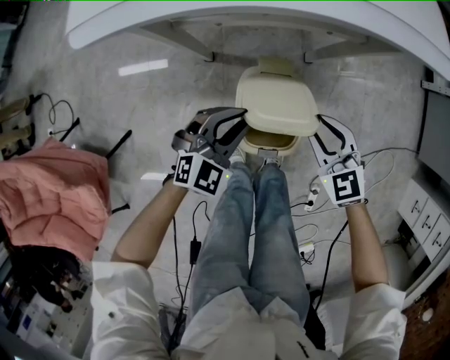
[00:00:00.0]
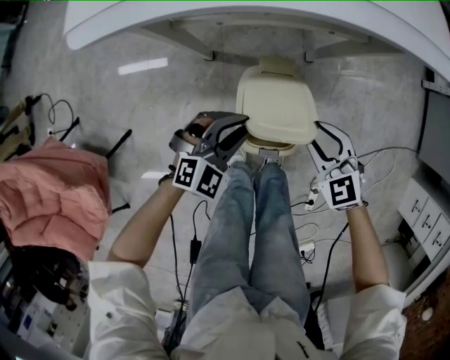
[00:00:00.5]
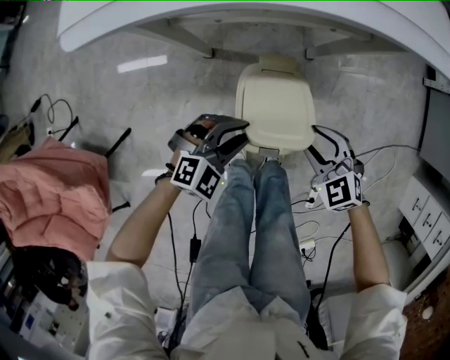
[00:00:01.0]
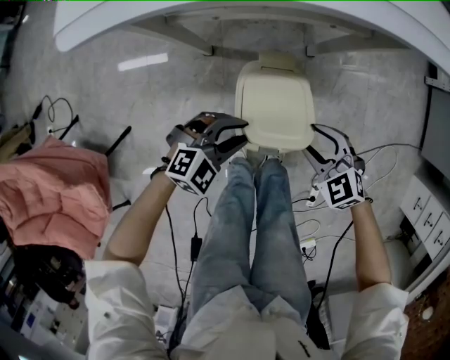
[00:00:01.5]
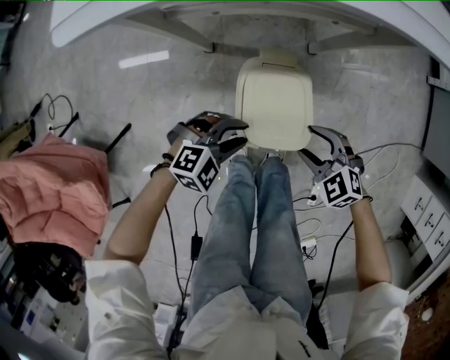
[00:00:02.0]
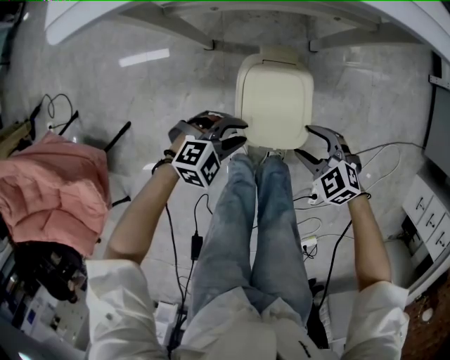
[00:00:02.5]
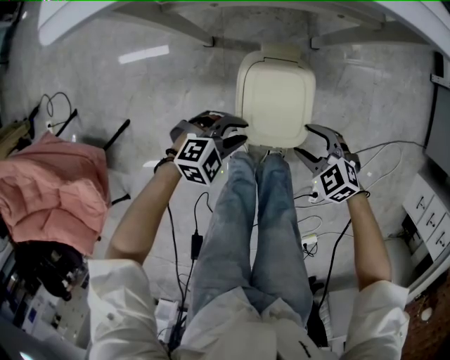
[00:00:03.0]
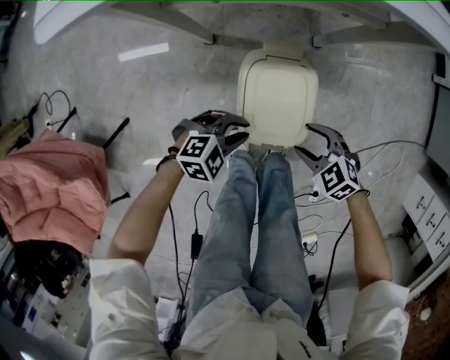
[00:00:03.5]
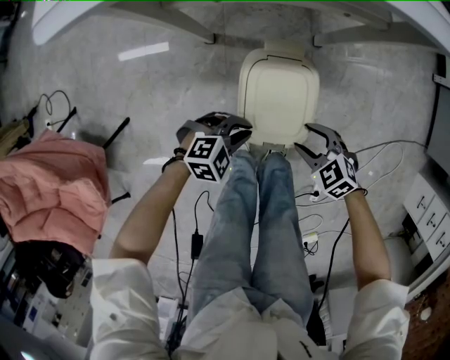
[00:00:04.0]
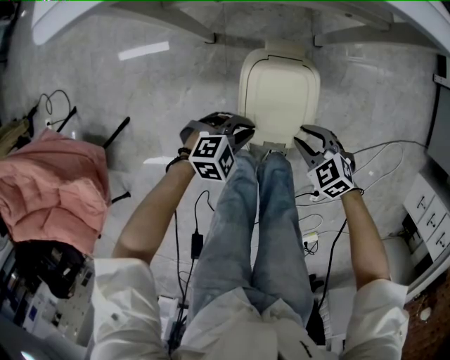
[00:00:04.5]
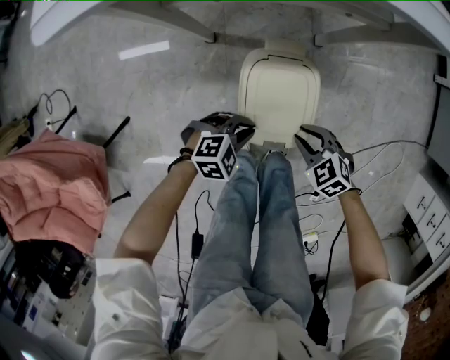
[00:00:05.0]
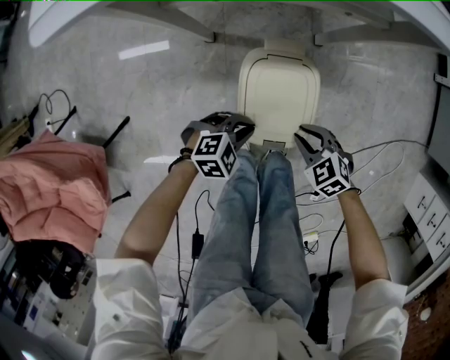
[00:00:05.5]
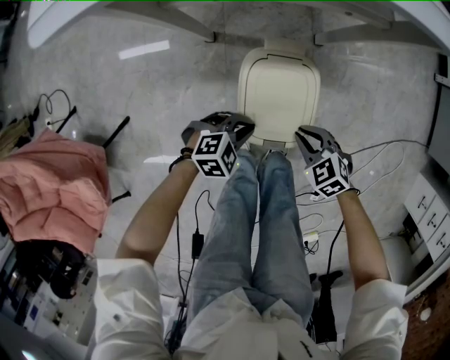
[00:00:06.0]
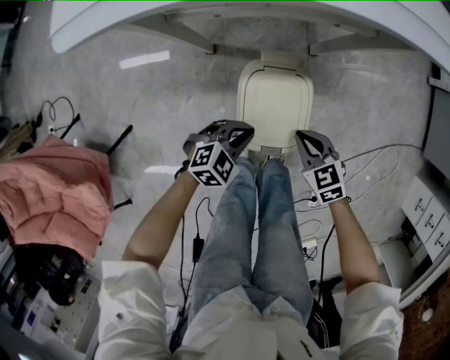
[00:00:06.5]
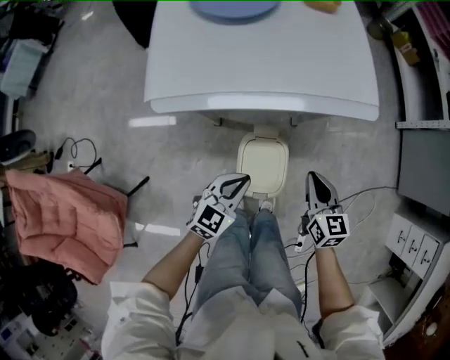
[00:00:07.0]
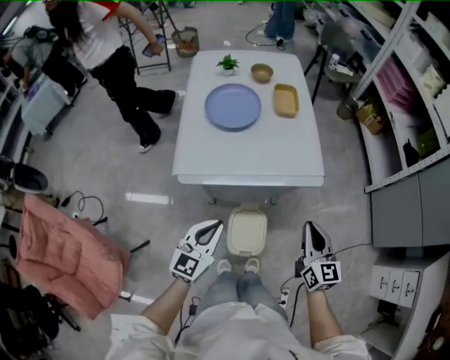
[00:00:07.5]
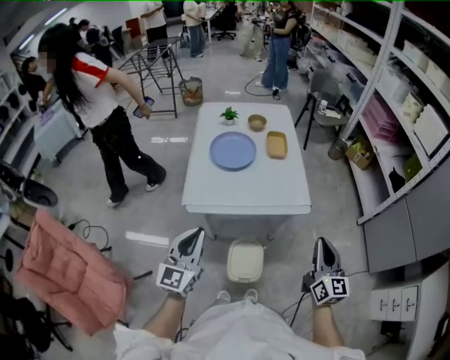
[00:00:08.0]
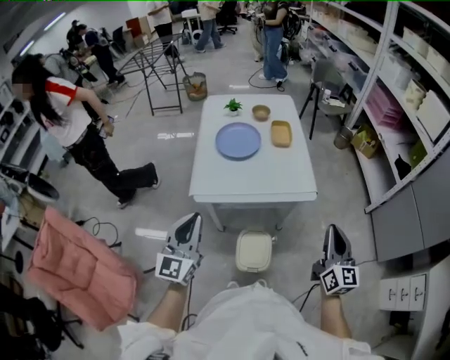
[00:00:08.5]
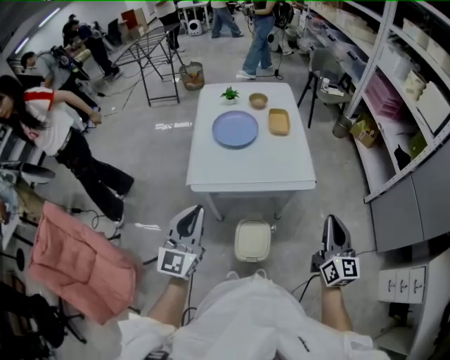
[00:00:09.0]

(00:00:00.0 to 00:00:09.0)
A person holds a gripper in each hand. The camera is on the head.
00:00:00.0 - 00:00:02.0: The right gripper heads downward, covering roughly 10 cm, and changes its angle by some 20 degrees. The left gripper shifts by some 10 cm, and changes its angle by roughly 30 degrees.
00:00:02.0 - 00:00:04.5: The grippers both shift downward by approximately 5 cm.
00:00:04.5 - 00:00:07.0: The grippers both shift upward by some 30 cm. The right gripper rotates some 60 degrees, while the left gripper changes its angle by roughly 50 degrees.
00:00:07.0 - 00:00:09.0: Both grippers move upward, approximately 40 cm. The left gripper tilts its fingers roughly 30 degrees upward, while the right gripper changes its angle by about 30 degrees.

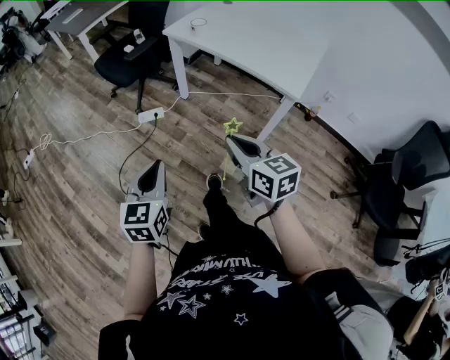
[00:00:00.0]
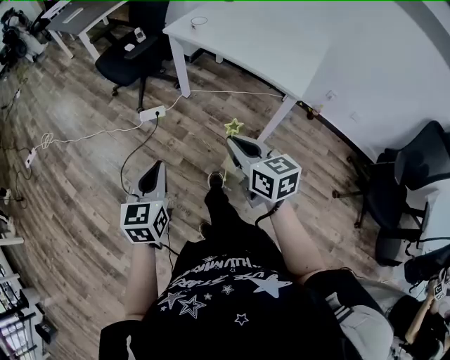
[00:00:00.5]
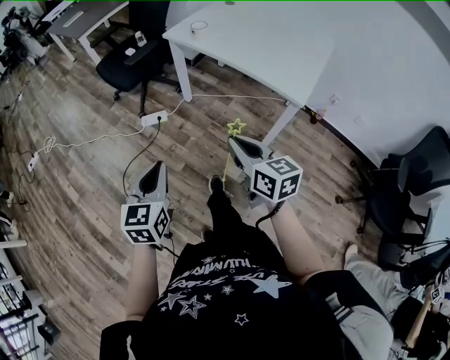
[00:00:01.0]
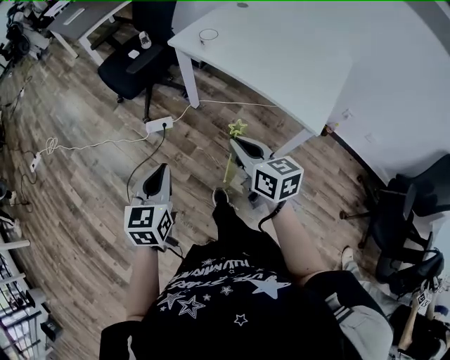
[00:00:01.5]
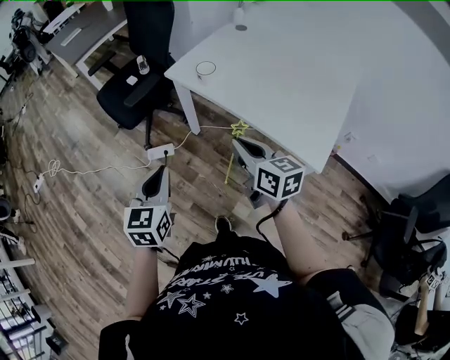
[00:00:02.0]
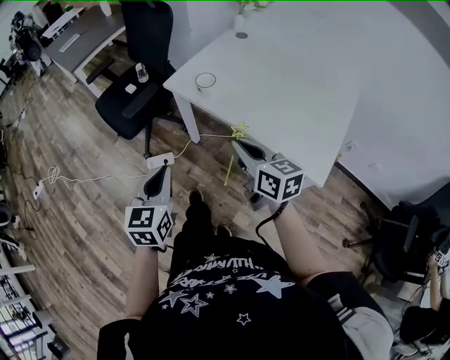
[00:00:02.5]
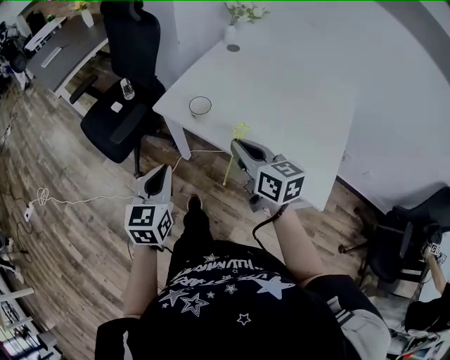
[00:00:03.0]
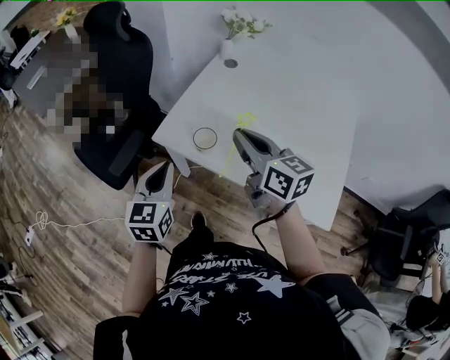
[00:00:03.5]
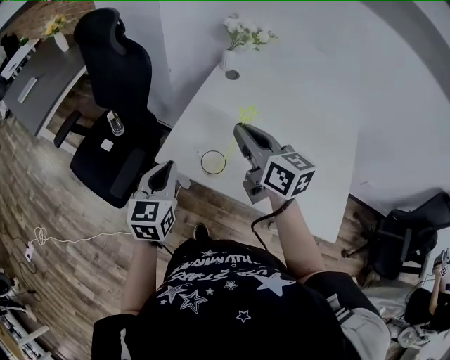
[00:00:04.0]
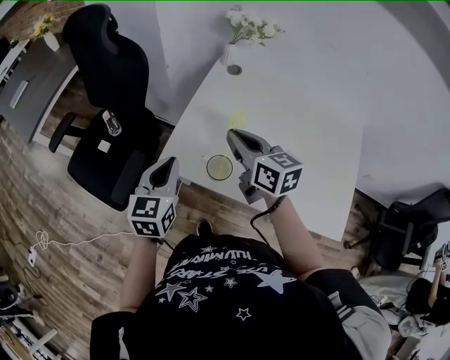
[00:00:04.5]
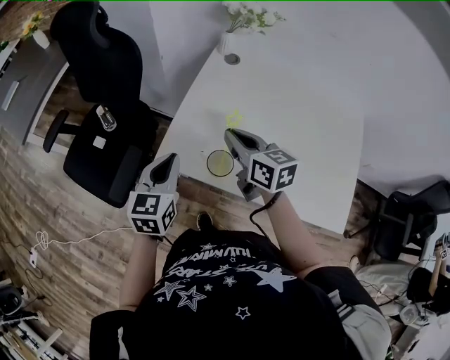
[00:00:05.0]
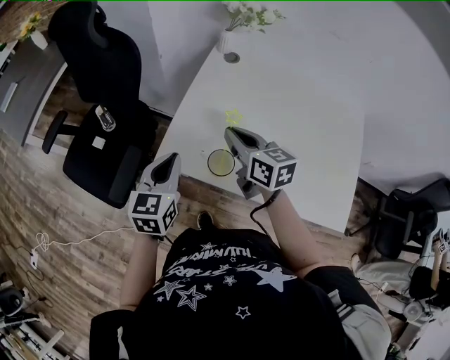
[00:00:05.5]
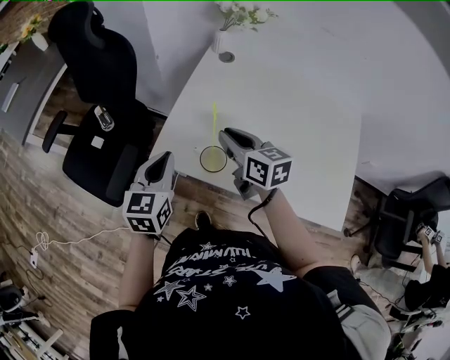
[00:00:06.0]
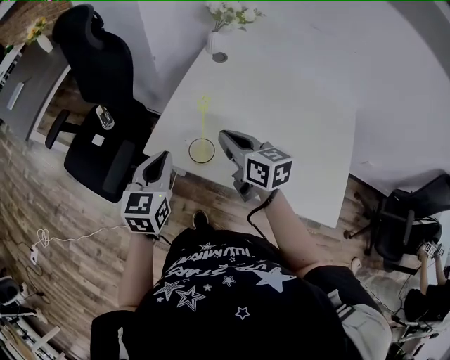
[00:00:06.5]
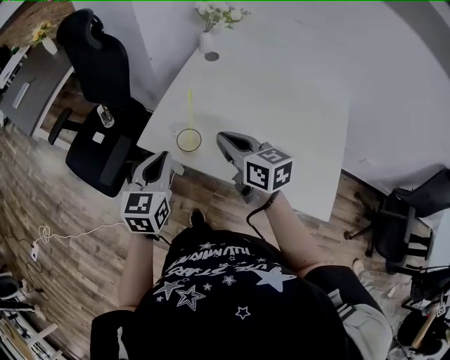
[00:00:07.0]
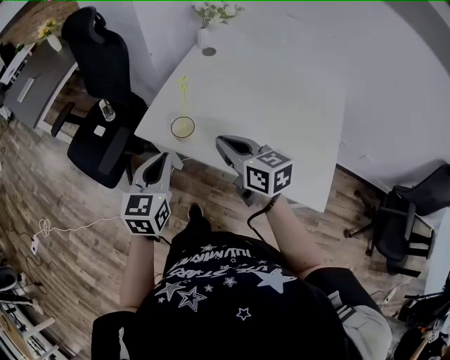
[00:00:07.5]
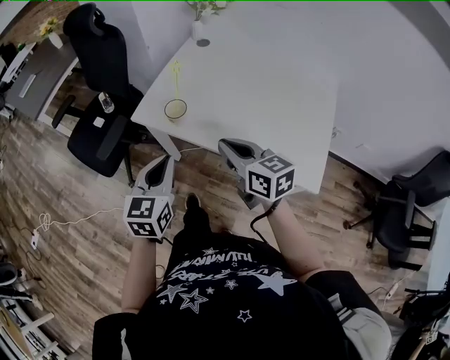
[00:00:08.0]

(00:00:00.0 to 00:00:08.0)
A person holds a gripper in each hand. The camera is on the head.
00:00:00.0 - 00:00:02.0: Both grippers travel together forward, about 30 cm.
00:00:02.0 - 00:00:04.0: Both grippers travel together forward, some 40 cm.
00:00:04.0 - 00:00:06.0: The left gripper changes place by about 5 cm. The right gripper is displaced downward by about 15 cm.
00:00:06.0 - 00:00:08.0: Both grippers travel together backward, about 25 cm.

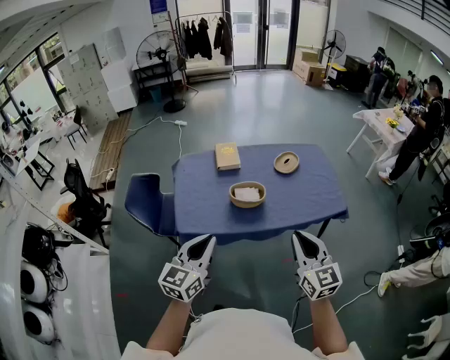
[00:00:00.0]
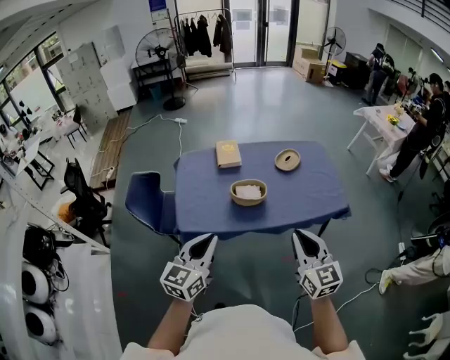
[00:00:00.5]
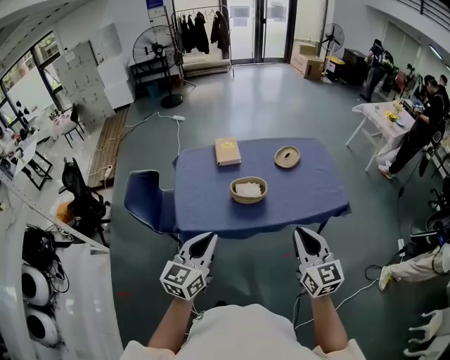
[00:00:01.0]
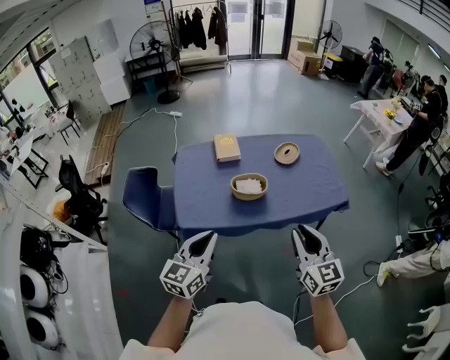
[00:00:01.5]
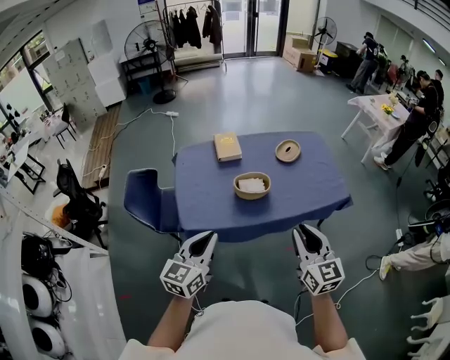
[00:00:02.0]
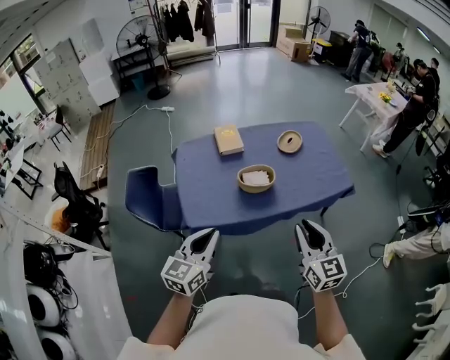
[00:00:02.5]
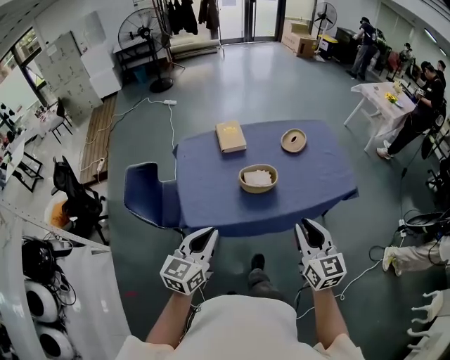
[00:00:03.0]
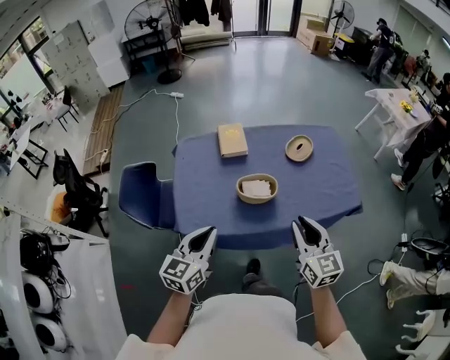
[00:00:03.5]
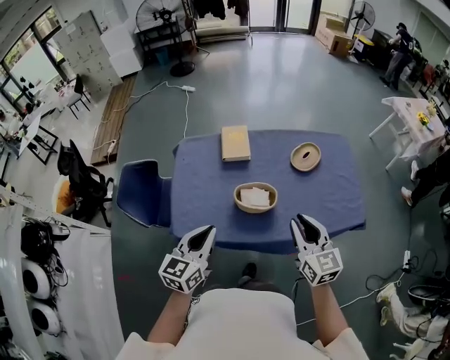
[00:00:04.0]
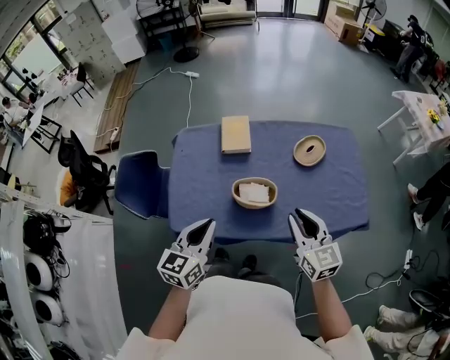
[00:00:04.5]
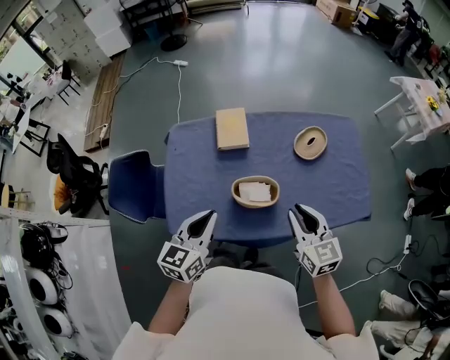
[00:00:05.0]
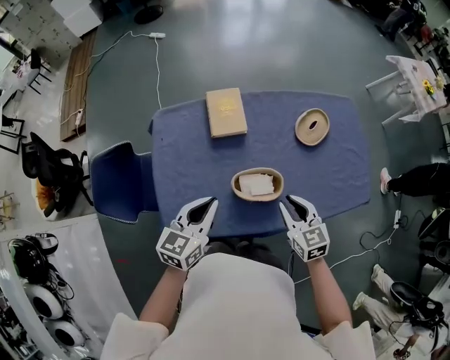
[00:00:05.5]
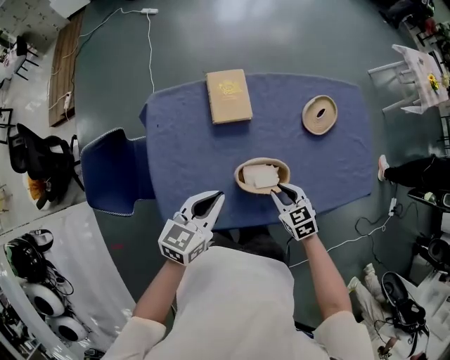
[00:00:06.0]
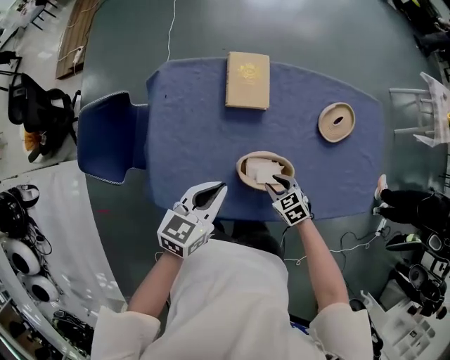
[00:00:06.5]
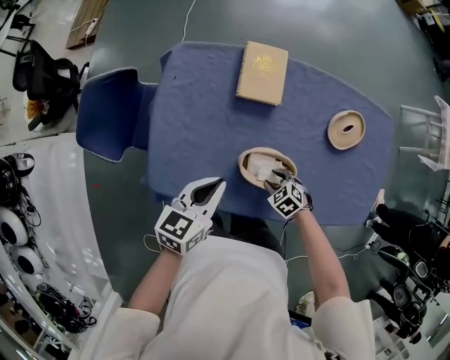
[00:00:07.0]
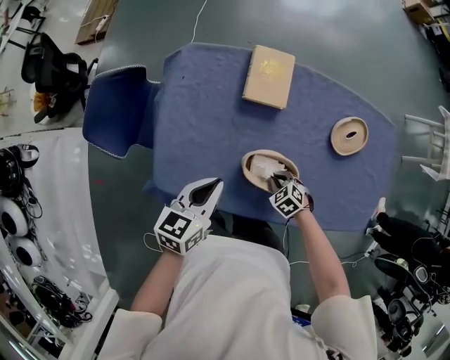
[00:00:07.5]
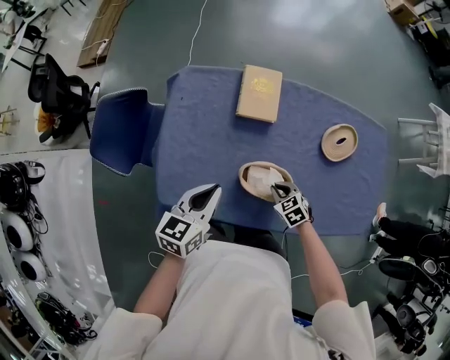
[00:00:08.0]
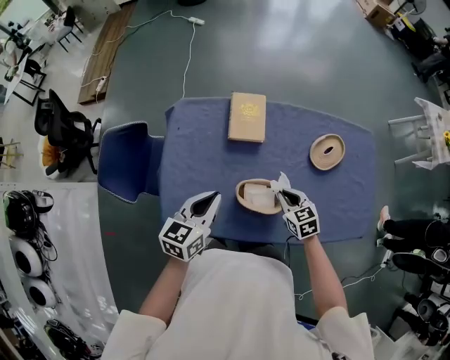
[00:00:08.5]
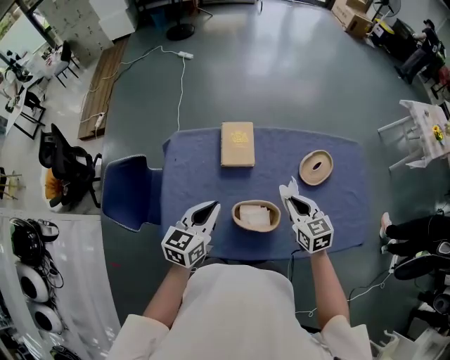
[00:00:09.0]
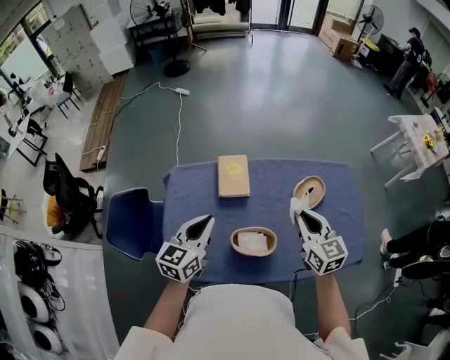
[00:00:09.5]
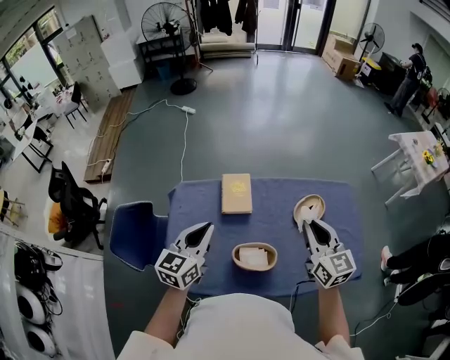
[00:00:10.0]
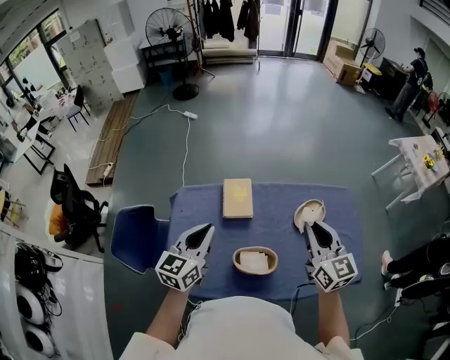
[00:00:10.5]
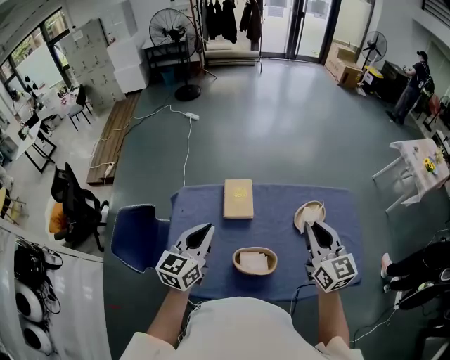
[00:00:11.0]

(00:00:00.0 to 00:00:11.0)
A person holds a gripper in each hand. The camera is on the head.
00:00:00.0 - 00:00:02.0: Both grippers move to the left, some 5 cm.
00:00:02.0 - 00:00:03.5: Both grippers travel together forward, some 15 cm.
00:00:03.5 - 00:00:05.5: The grippers both shift forward and downward by roughly 30 cm. The right gripper changes its angle by approximately 20 degrees.
00:00:05.5 - 00:00:07.5: The left gripper shifts about 10 cm downward, and rotates some 20 degrees. Meanwhile the right gripper shifts about 25 cm downward, and tips its fingers downward by about 40 degrees.
00:00:07.5 - 00:00:09.0: The left gripper is displaced upward by about 10 cm, while the right gripper goes approximately 30 cm upward, and points its fingers approximately 40 degrees further upward.
00:00:09.0 - 00:00:11.0: The left gripper goes some 10 cm upward. The right gripper moves upward, about 20 cm, and rotates about 30 degrees.
